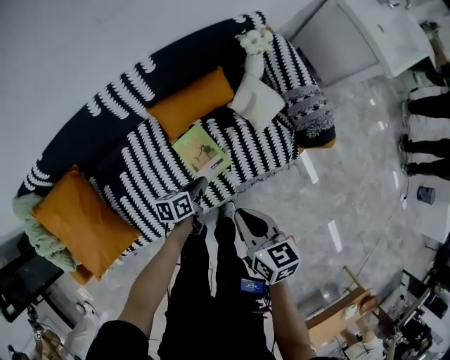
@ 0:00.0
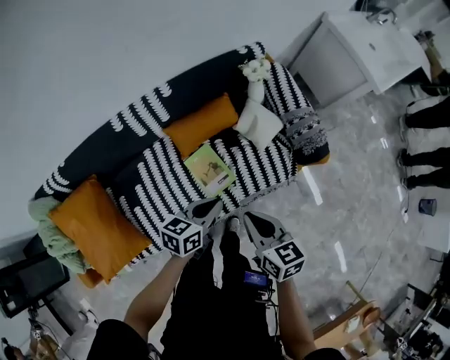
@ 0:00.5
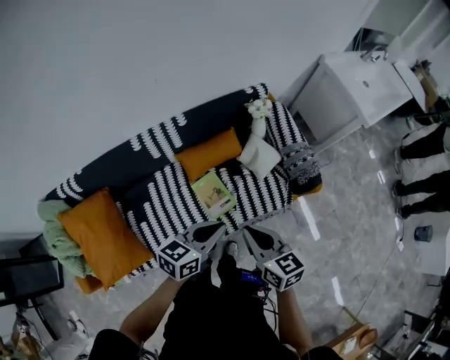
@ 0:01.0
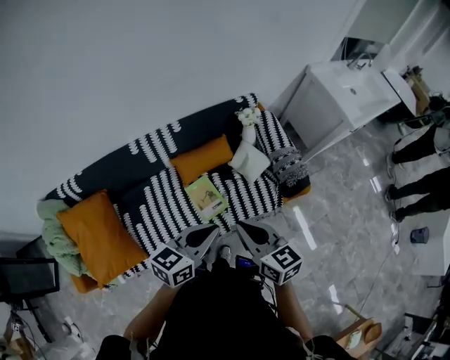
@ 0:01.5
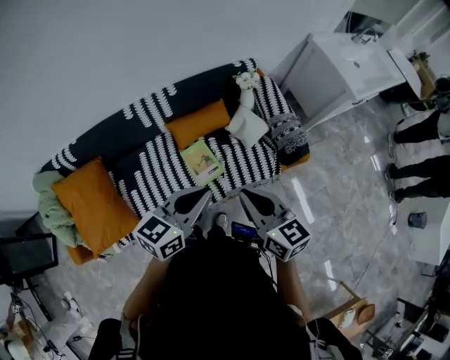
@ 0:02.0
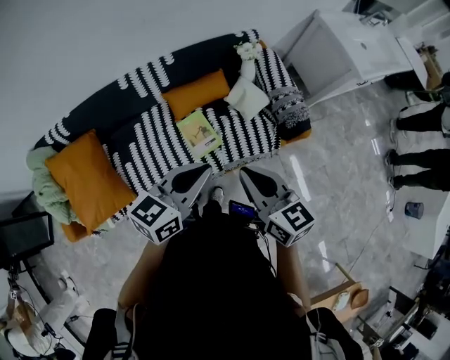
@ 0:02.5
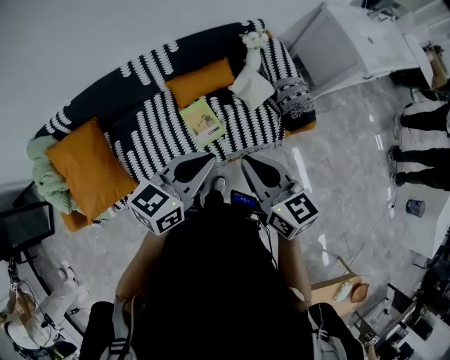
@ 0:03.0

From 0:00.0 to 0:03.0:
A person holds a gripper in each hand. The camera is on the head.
From 0:00.0 to 0:01.5: The right gripper shifts about 20 cm upward, and changes its angle by some 20 degrees.
From 0:01.5 to 0:03.0: The right gripper shifts by some 5 cm.
